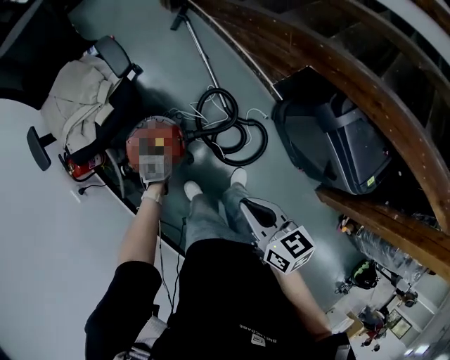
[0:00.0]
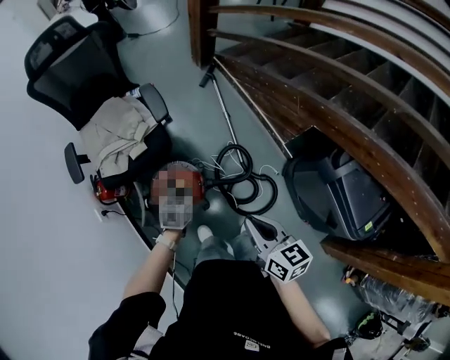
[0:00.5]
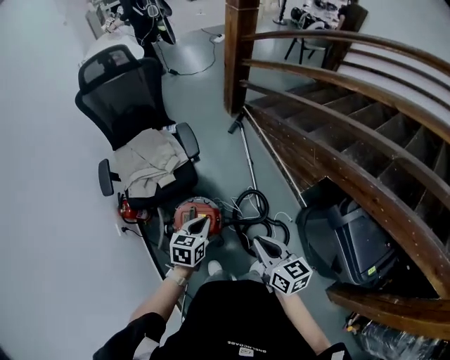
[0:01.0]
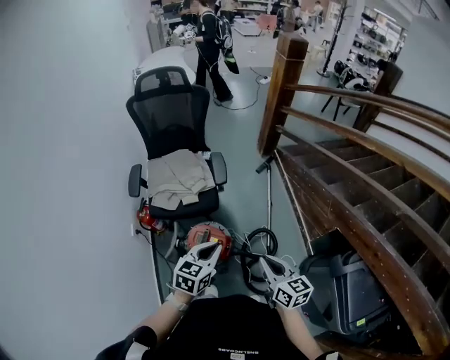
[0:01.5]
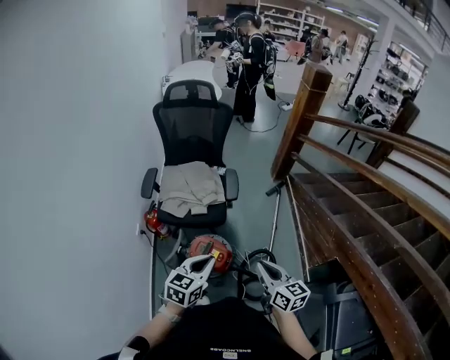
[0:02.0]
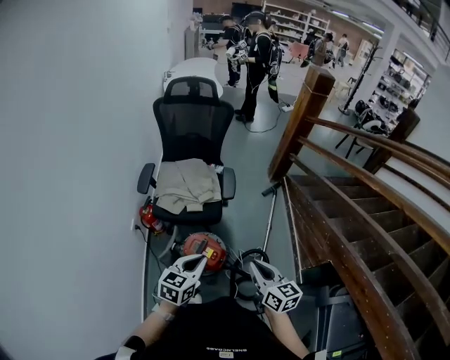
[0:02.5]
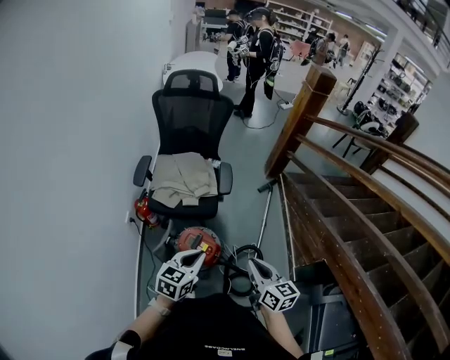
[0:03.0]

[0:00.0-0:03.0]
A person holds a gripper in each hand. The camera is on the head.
0:00.0 to 0:01.5: The left gripper goes roughly 50 cm upward, and points its fingers some 30 degrees further upward; the right gripper moves upward, roughly 15 cm, and turns by some 30 degrees.
0:01.5 to 0:03.0: The left gripper changes place by approximately 5 cm.

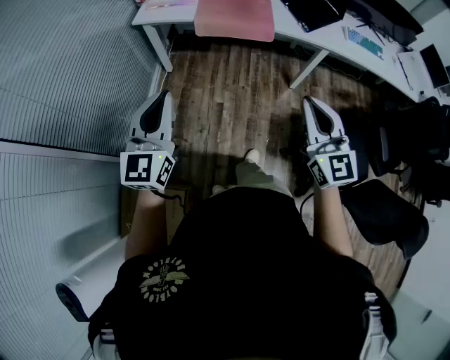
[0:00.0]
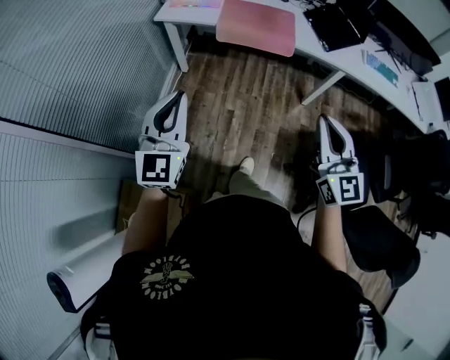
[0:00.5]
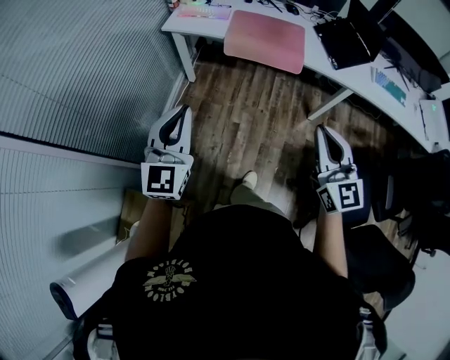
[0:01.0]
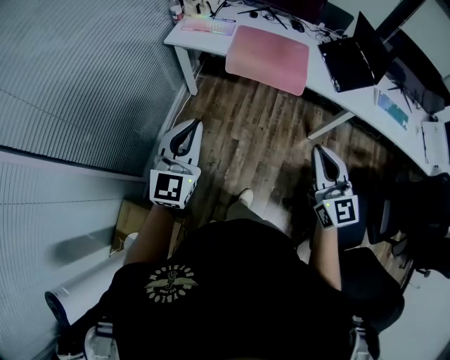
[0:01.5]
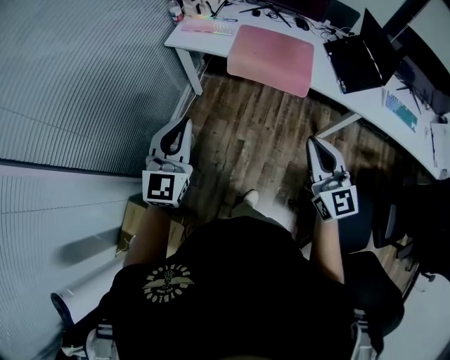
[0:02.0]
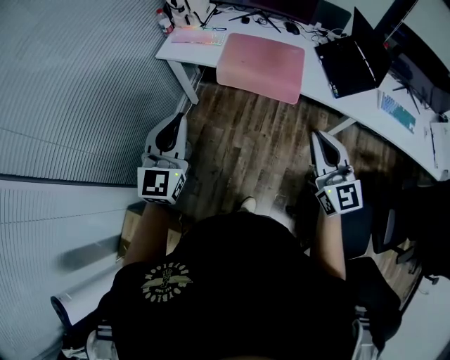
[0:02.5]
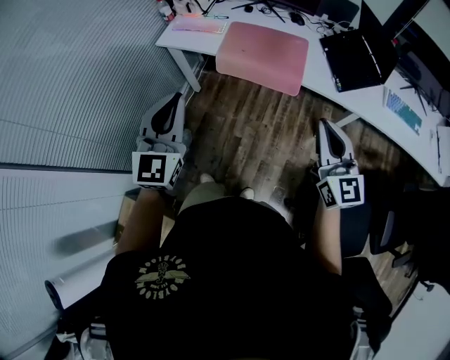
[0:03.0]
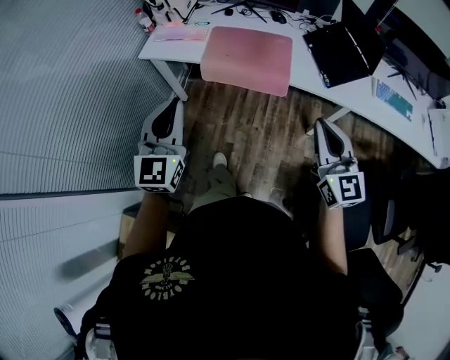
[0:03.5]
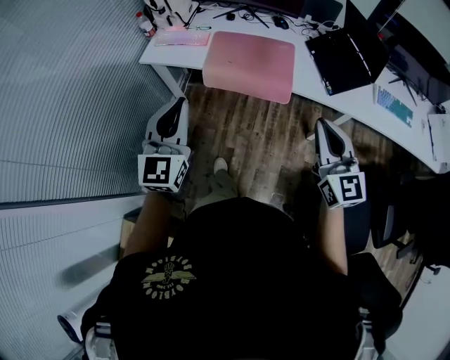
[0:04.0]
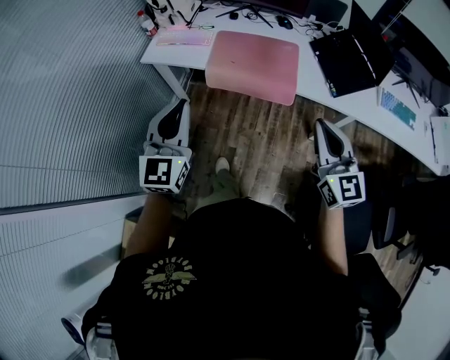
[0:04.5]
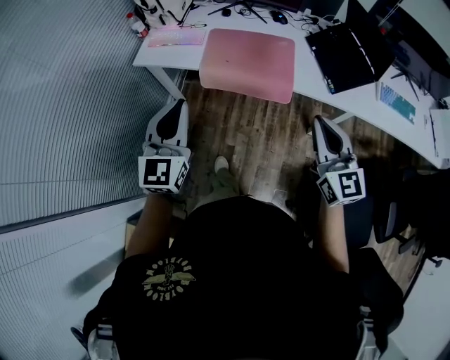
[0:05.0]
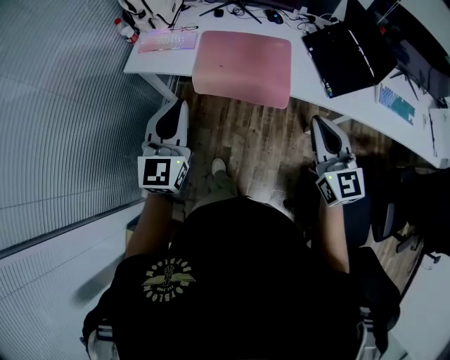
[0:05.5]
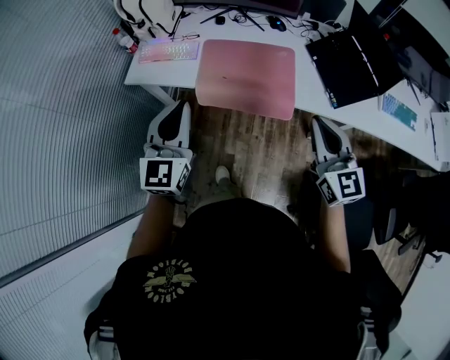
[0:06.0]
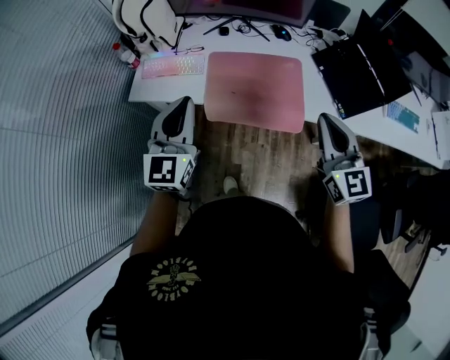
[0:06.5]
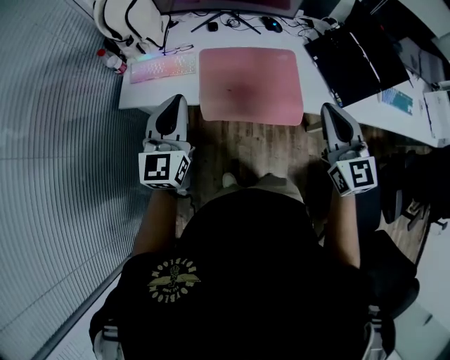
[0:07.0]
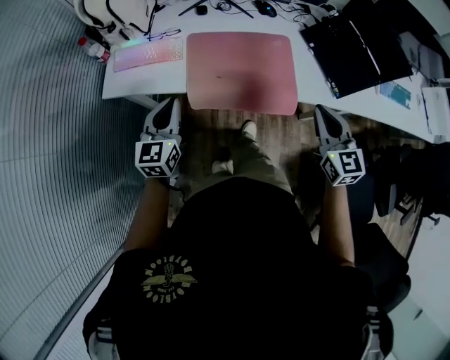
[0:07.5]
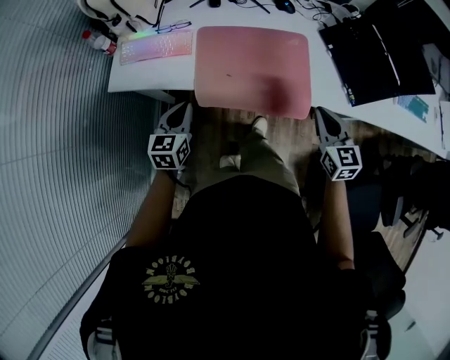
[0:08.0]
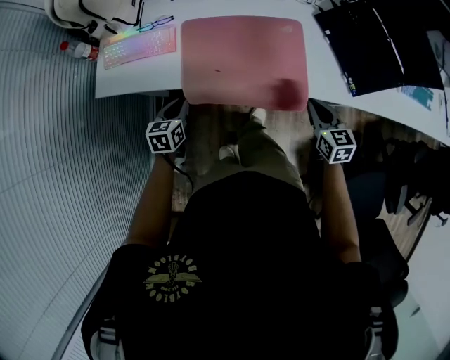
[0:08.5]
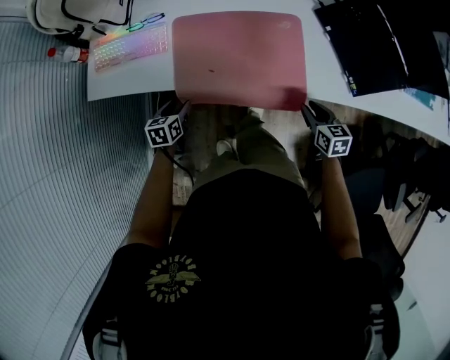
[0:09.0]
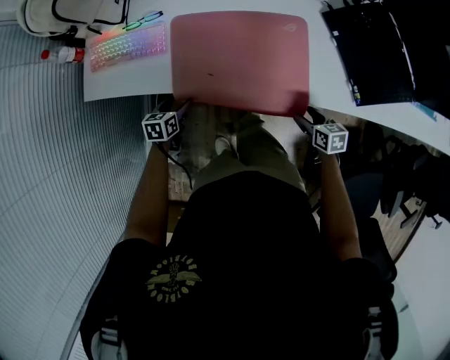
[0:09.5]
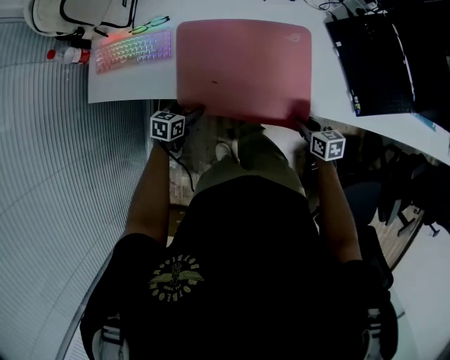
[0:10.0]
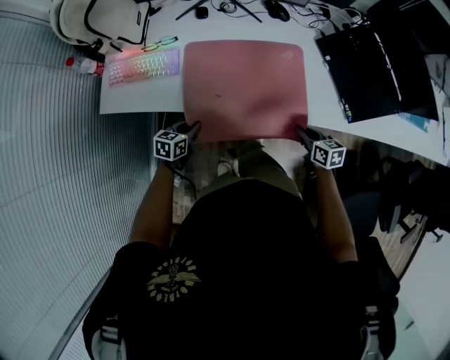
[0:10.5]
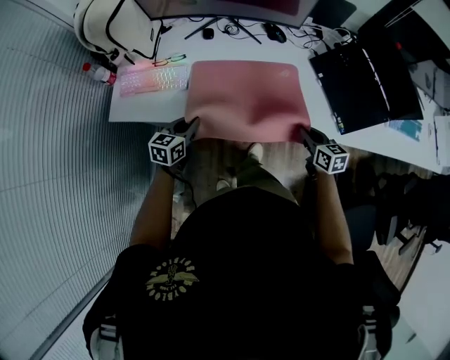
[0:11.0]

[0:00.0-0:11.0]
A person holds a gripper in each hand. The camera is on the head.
0:00.0 to 0:02.0: Both grippers move forward, some 20 cm.
0:02.0 to 0:03.5: The grippers both shift to the right and forward by approximately 15 cm.
0:03.5 to 0:05.5: Both grippers travel together forward, roughly 15 cm.
0:05.5 to 0:07.5: The left gripper heads forward, downward and to the left, covering roughly 25 cm, while the right gripper moves forward and downward, roughly 20 cm.
0:07.5 to 0:09.0: The two grippers go roughly 25 cm downward. The right gripper swivels roughly 30 degrees, and opens. Meanwhile the left gripper tips its fingers downward by some 30 degrees, and opens its fingers.
0:09.0 to 0:11.0: The right gripper heads upward, covering roughly 10 cm, and closes; the left gripper goes about 15 cm upward, rotates some 20 degrees, and closes.

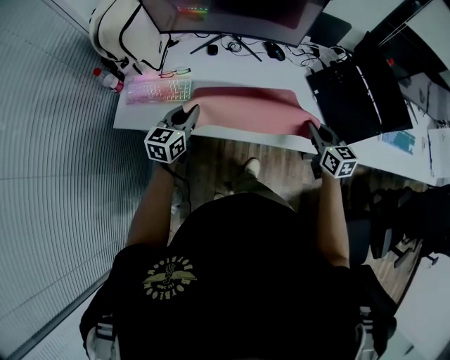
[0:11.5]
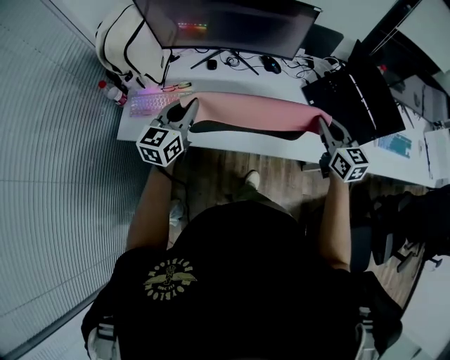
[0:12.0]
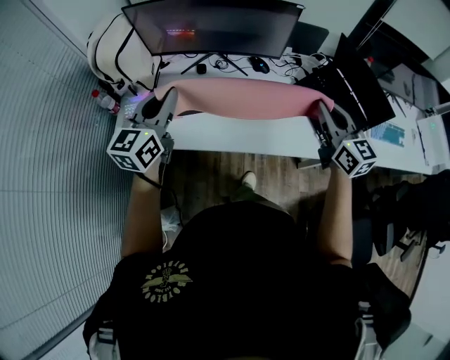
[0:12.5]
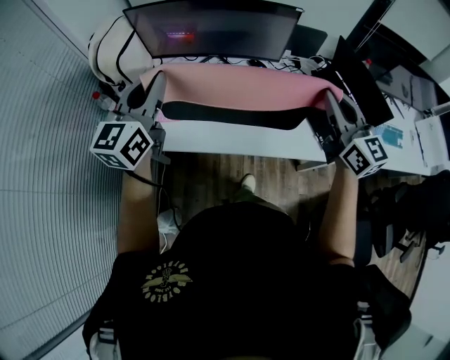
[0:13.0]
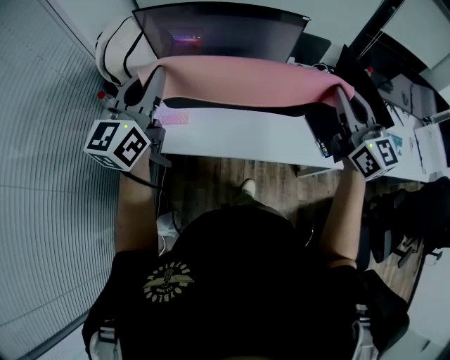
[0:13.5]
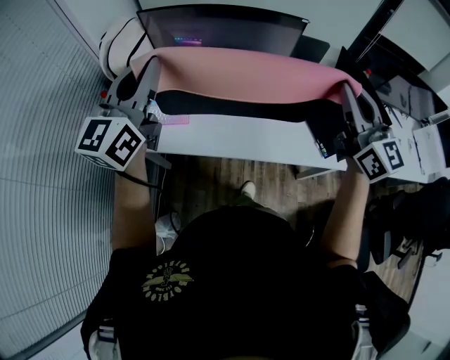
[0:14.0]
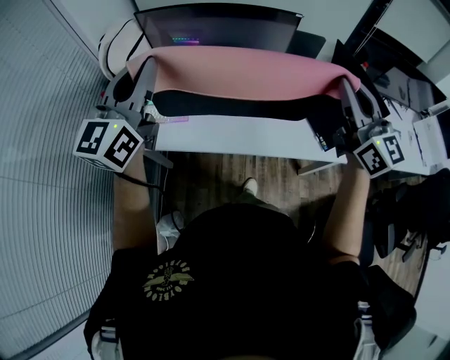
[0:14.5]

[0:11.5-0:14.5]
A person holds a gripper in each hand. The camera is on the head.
0:11.5 to 0:13.0: The two grippers go roughly 30 cm upward. The left gripper rotates approximately 20 degrees. Meanwhile the right gripper swivels some 30 degrees.
0:13.0 to 0:14.5: Both grippers travel together upward, roughly 10 cm.

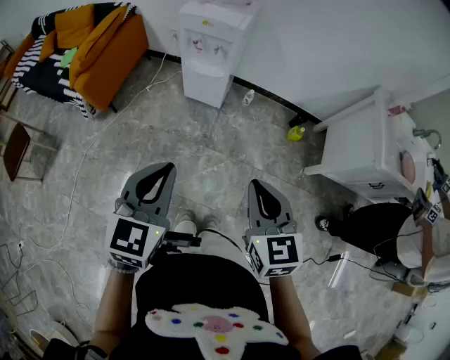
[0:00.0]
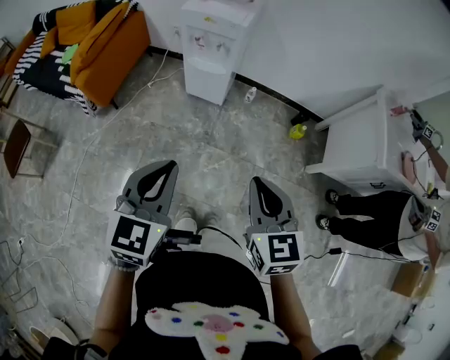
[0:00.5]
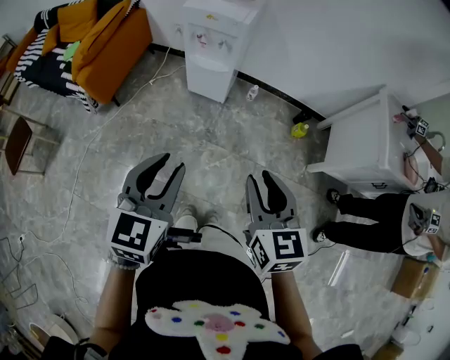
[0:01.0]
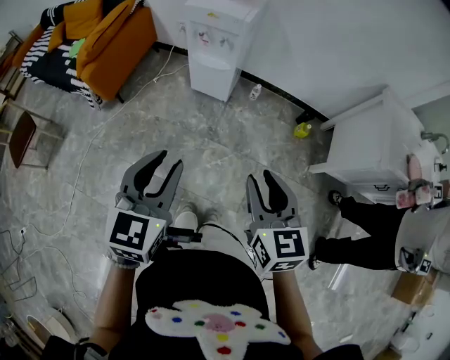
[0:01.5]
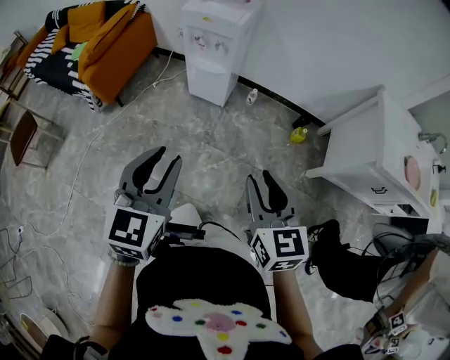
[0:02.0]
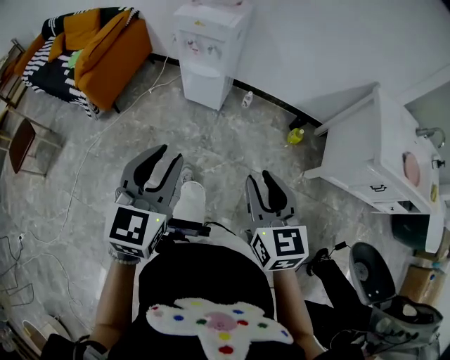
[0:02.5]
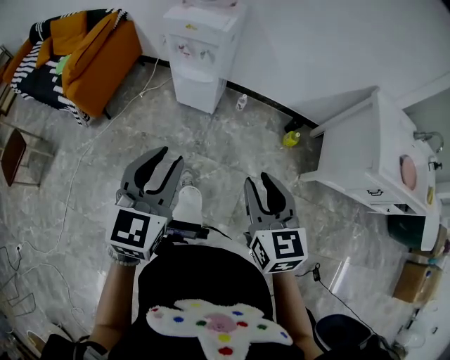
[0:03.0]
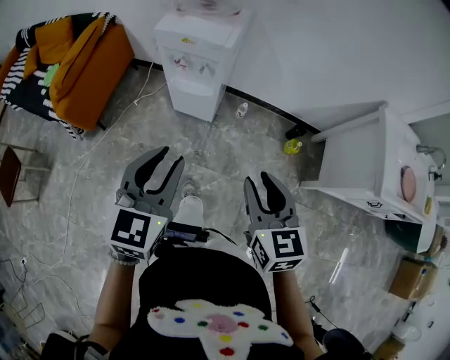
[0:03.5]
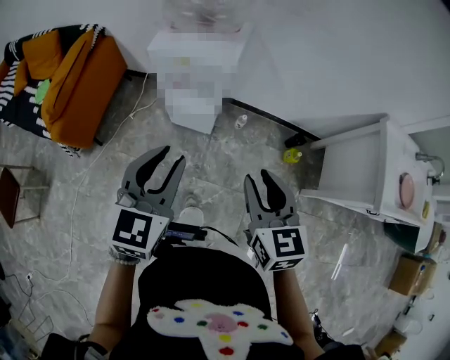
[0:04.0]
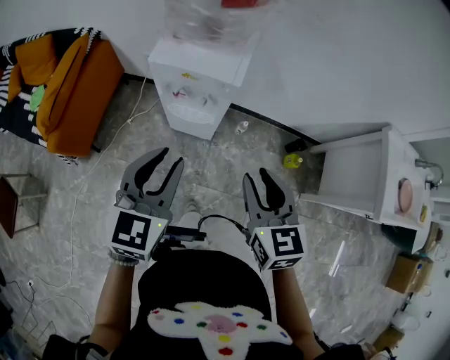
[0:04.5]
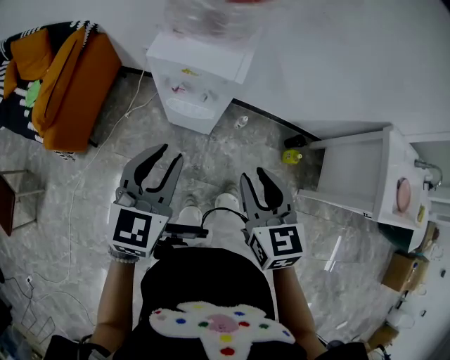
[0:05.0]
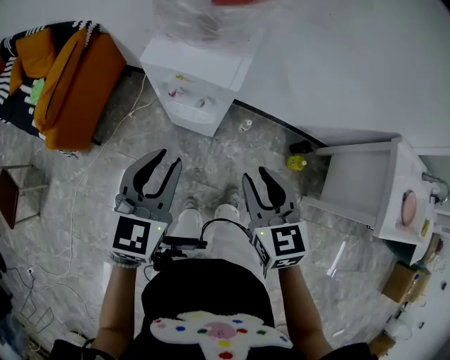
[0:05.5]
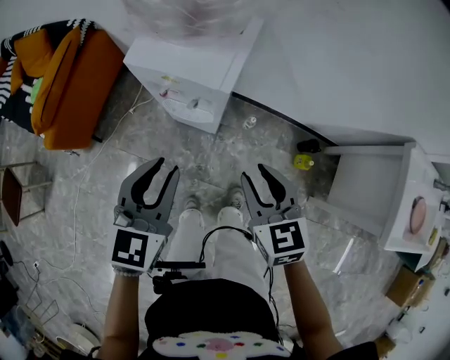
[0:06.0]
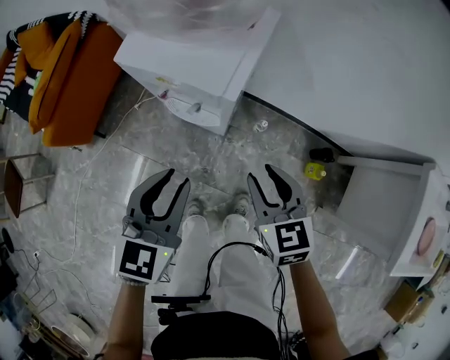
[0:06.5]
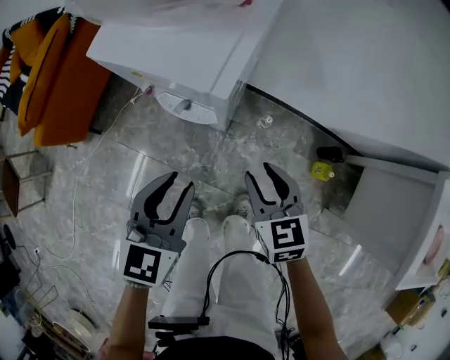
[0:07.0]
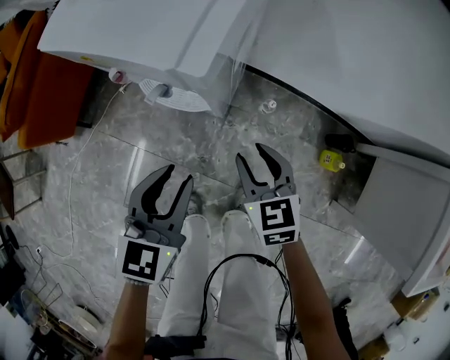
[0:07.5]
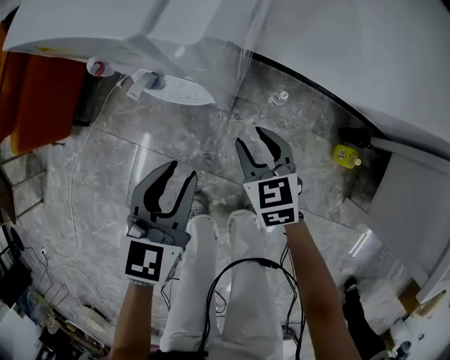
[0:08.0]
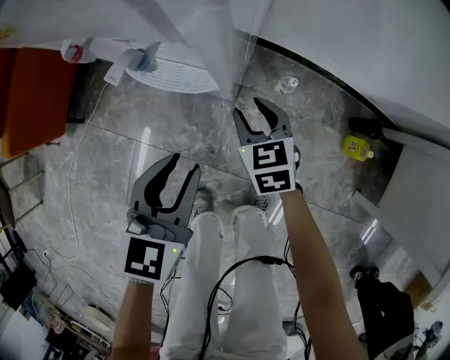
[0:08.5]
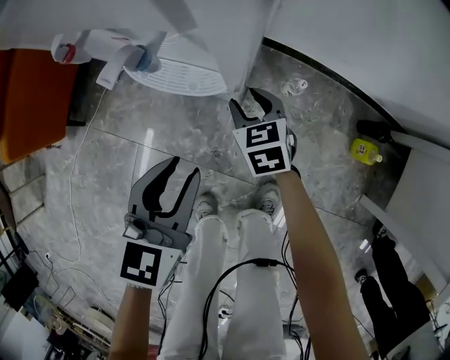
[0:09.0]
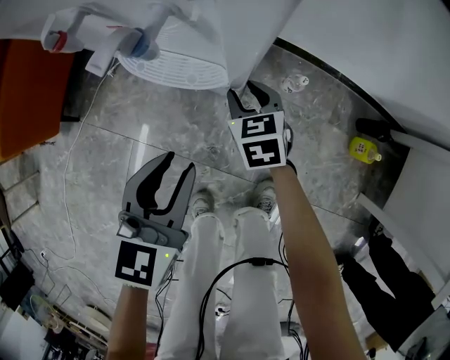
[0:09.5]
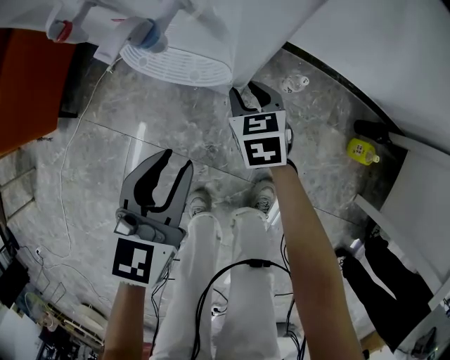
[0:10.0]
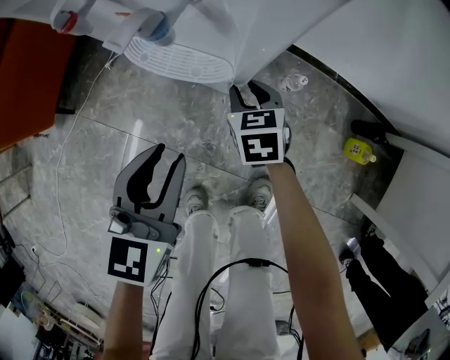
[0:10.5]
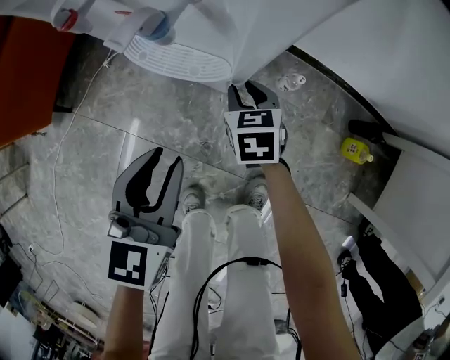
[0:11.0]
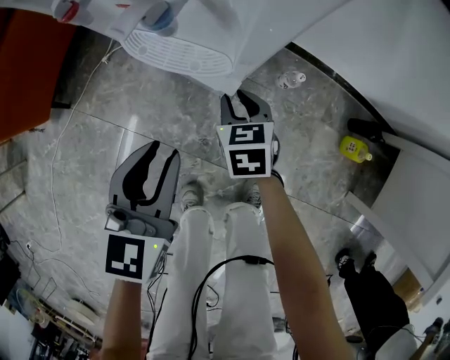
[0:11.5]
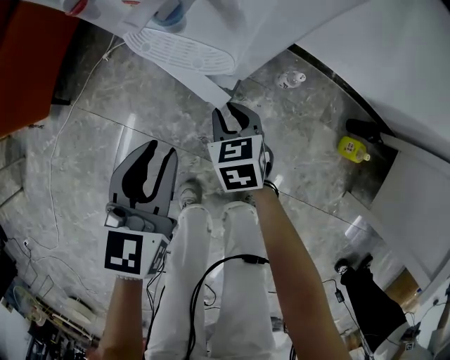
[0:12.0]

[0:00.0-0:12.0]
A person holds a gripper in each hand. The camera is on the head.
0:00.0 to 0:02.0: The left gripper shifts by about 5 cm, and opens its fingers. The right gripper travels to the right by some 5 cm, and opens up.
0:02.0 to 0:04.0: The two grippers go about 30 cm forward.
0:04.0 to 0:06.0: Both grippers move forward and downward, approximately 15 cm.
0:06.0 to 0:08.0: Both grippers travel together downward, approximately 35 cm.
0:08.0 to 0:10.0: The right gripper is displaced downward and forward by about 15 cm, while the left gripper is displaced downward by roughly 10 cm.
0:10.0 to 0:12.0: The right gripper travels backward by approximately 5 cm.
